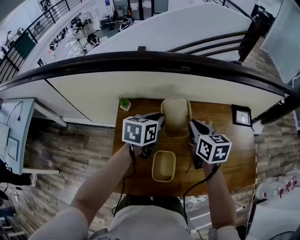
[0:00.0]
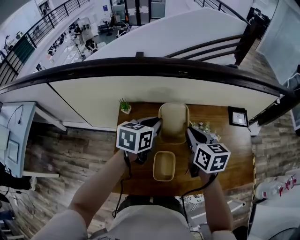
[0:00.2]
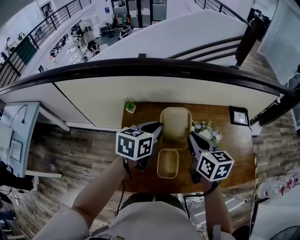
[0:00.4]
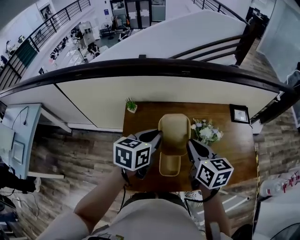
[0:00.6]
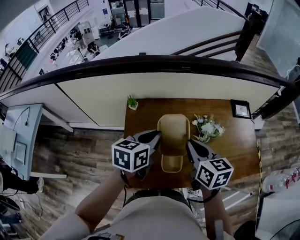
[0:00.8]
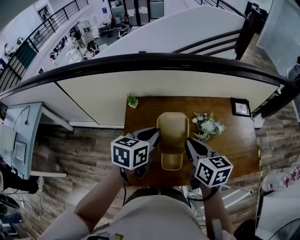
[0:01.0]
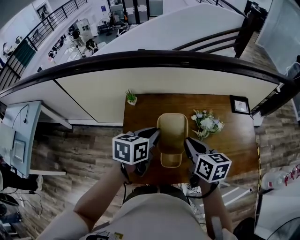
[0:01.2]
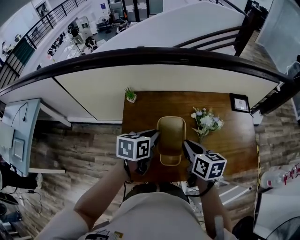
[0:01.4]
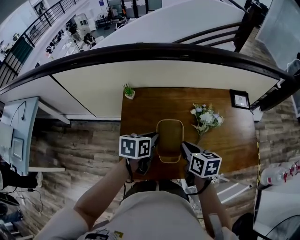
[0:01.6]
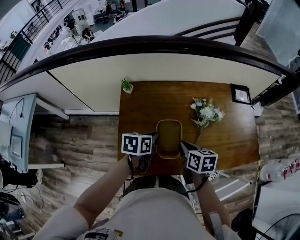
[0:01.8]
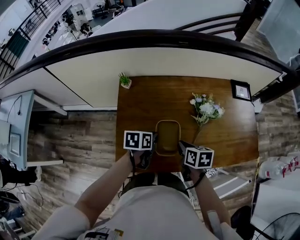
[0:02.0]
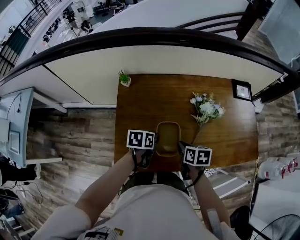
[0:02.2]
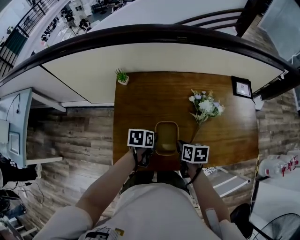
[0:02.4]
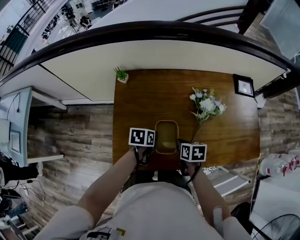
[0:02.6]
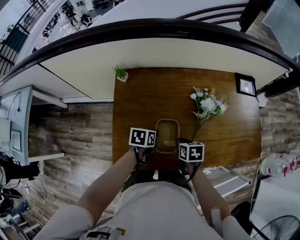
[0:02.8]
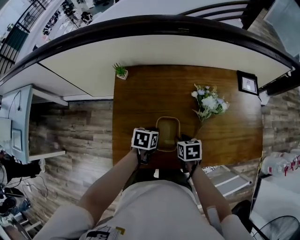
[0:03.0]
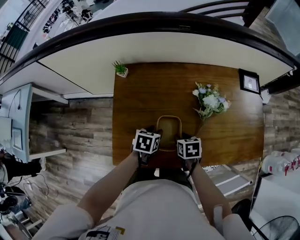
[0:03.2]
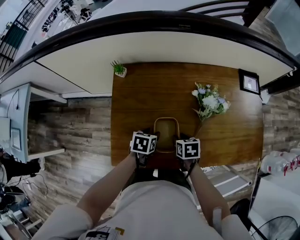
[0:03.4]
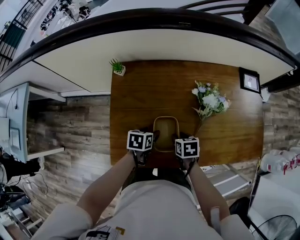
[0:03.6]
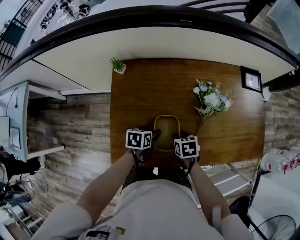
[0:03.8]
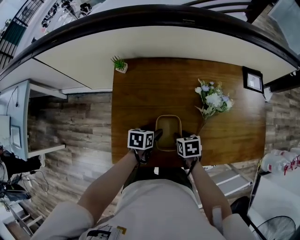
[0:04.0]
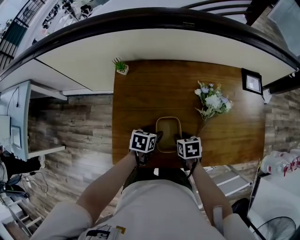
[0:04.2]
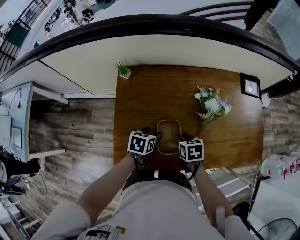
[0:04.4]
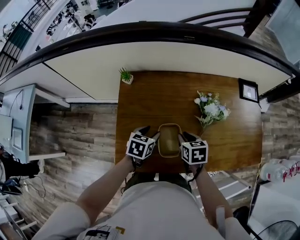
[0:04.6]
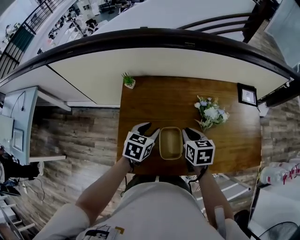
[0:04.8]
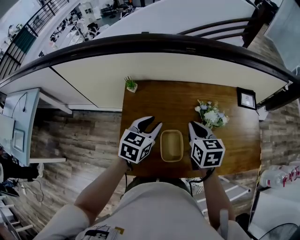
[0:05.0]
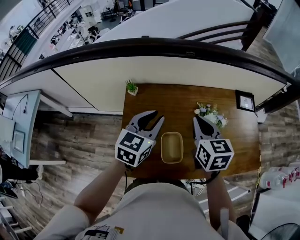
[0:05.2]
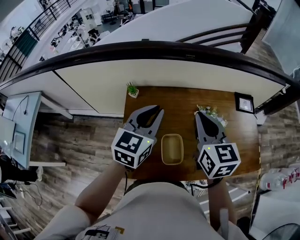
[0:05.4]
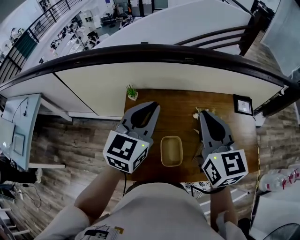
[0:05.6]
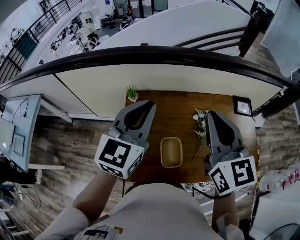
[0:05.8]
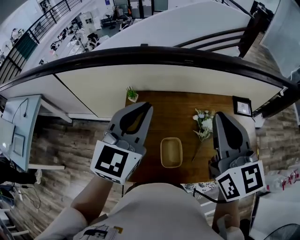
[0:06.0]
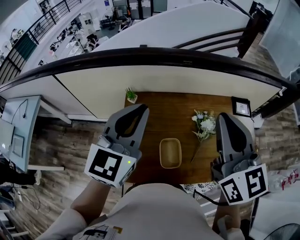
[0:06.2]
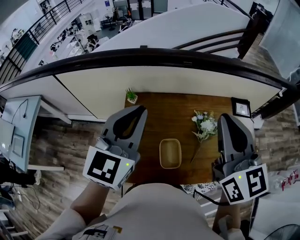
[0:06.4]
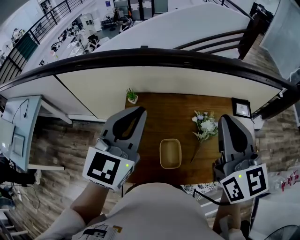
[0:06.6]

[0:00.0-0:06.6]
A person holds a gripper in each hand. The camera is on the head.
0:00.0 to 0:01.6: The grippers both shift backward by roughly 20 cm.
0:01.6 to 0:03.2: Both grippers travel together downward, roughly 20 cm. The left gripper swivels about 20 degrees, and opens up; the right gripper rotates roughly 20 degrees.
0:03.2 to 0:05.0: Both grippers travel together upward, roughly 20 cm. The left gripper swivels some 30 degrees, and opens, then closes once more; the right gripper swivels roughly 30 degrees.
0:05.0 to 0:06.6: Both grippers travel together upward, roughly 25 cm. The left gripper rotates roughly 30 degrees. The right gripper tips its fingers upward by about 30 degrees.

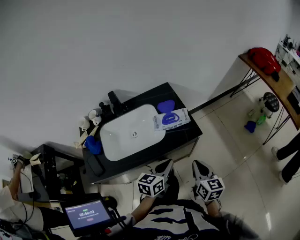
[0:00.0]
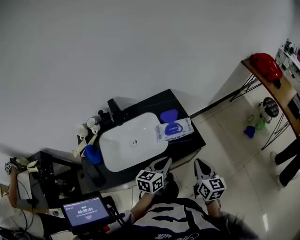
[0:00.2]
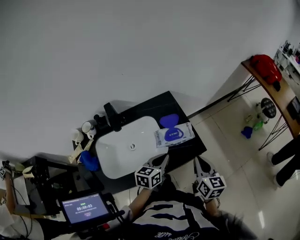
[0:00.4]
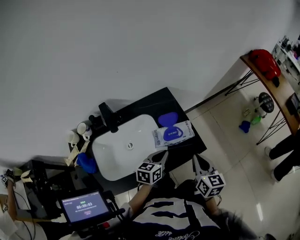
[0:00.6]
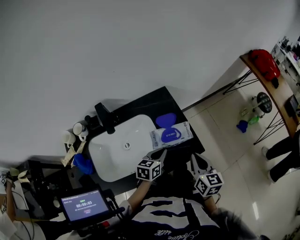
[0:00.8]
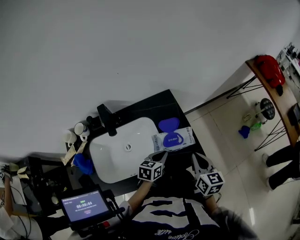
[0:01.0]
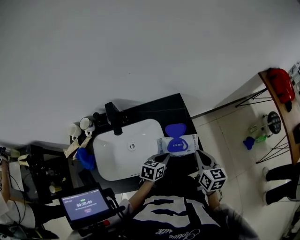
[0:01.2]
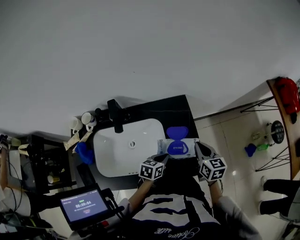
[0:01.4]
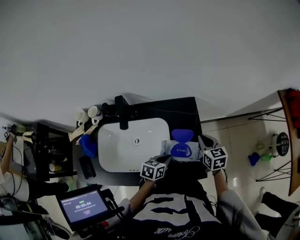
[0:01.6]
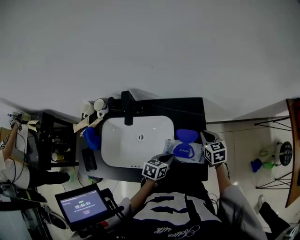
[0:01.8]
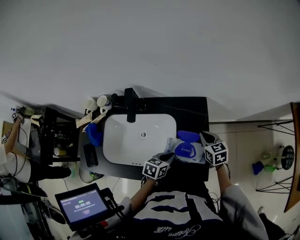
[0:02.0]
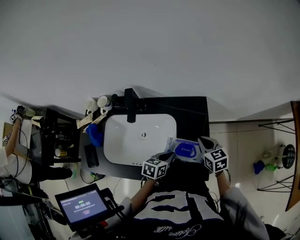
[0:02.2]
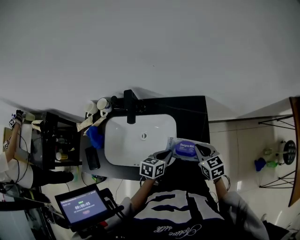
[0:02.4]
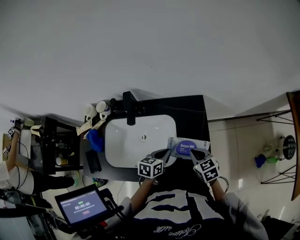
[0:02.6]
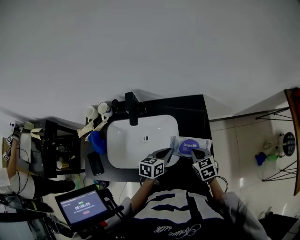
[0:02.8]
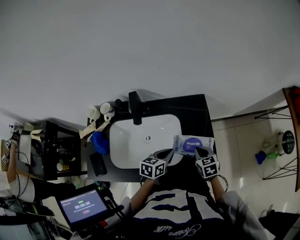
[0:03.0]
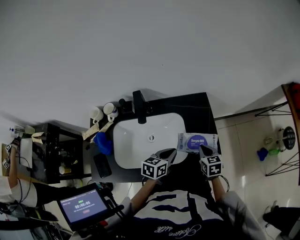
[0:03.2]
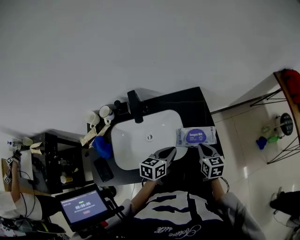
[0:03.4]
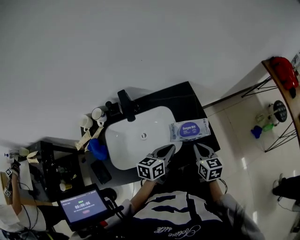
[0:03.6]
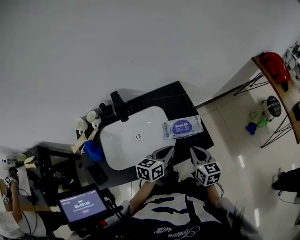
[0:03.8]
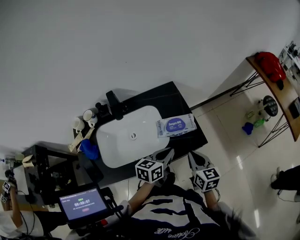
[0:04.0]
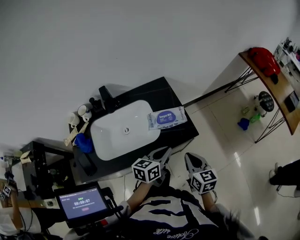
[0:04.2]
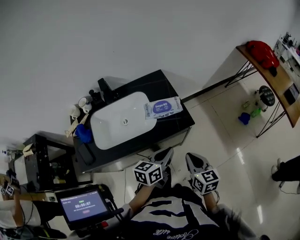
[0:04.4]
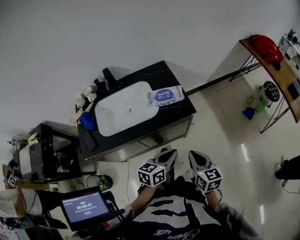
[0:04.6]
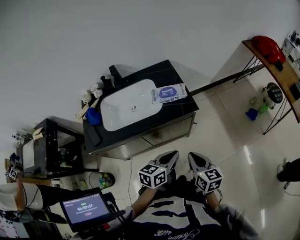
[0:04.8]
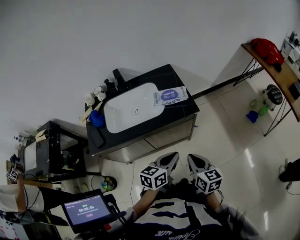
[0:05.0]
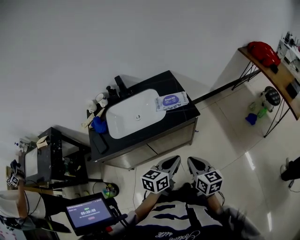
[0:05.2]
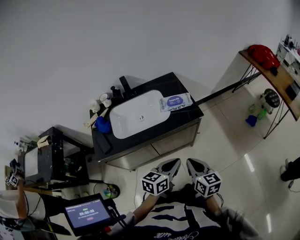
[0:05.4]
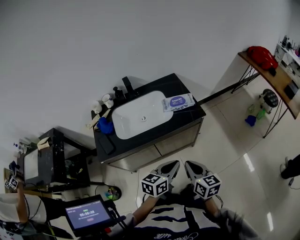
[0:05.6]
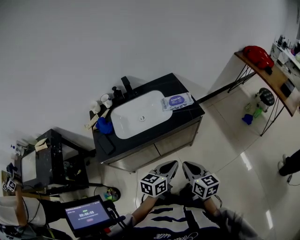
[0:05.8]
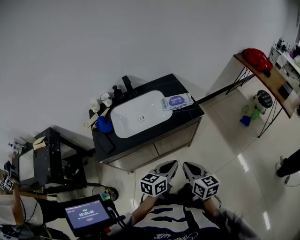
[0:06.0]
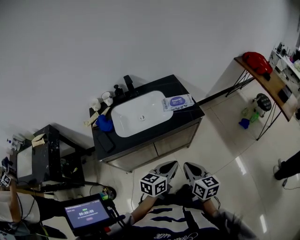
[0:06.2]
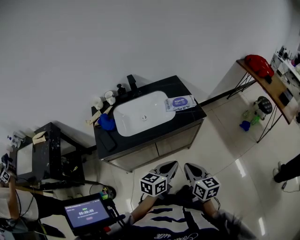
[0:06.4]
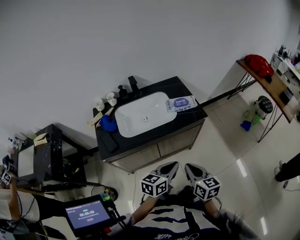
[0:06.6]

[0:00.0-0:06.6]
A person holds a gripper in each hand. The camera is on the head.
0:00.0 to 0:01.6: The right gripper heads forward, covering approximately 35 cm, and swivels about 30 degrees. The left gripper is displaced forward and downward by about 25 cm, and swivels approximately 20 degrees.
0:01.6 to 0:03.2: The left gripper goes roughly 10 cm to the left and upward. Meanwhile the right gripper shifts roughly 10 cm backward and to the left.
0:03.2 to 0:05.0: The left gripper shifts roughly 35 cm backward and to the right; the right gripper moves backward, some 35 cm, and rotates approximately 30 degrees.
0:05.0 to 0:06.6: The grippers both shift to the left and backward by approximately 15 cm.

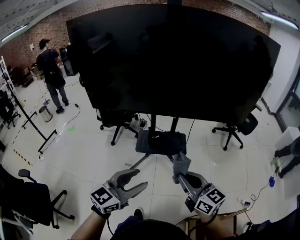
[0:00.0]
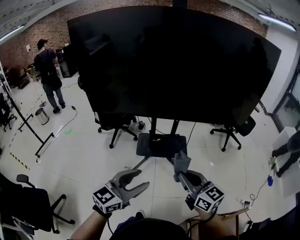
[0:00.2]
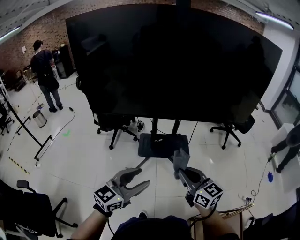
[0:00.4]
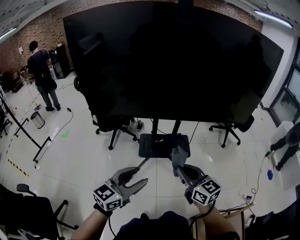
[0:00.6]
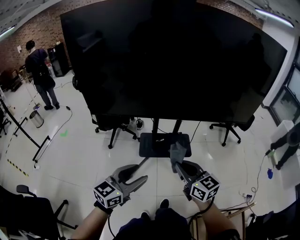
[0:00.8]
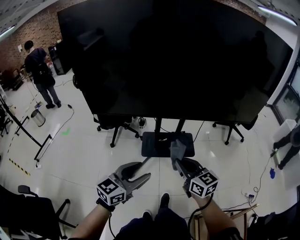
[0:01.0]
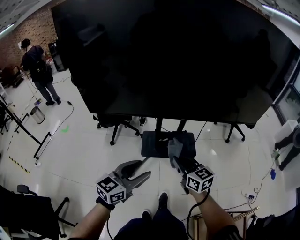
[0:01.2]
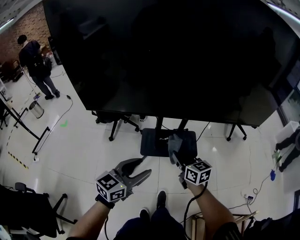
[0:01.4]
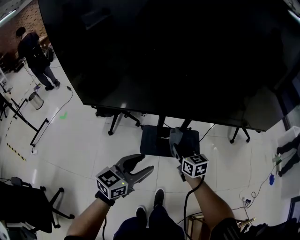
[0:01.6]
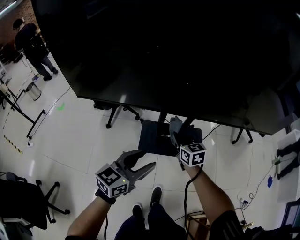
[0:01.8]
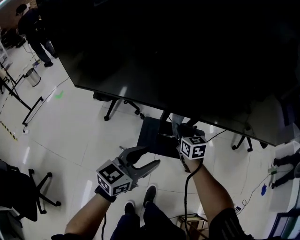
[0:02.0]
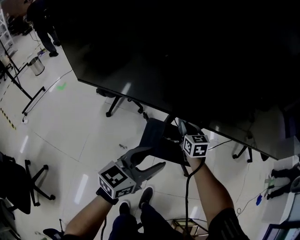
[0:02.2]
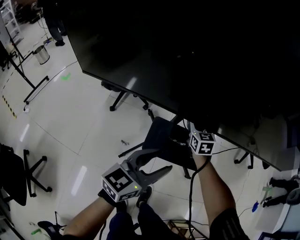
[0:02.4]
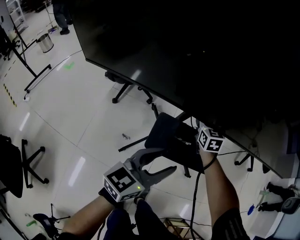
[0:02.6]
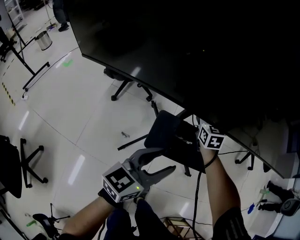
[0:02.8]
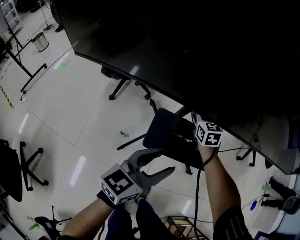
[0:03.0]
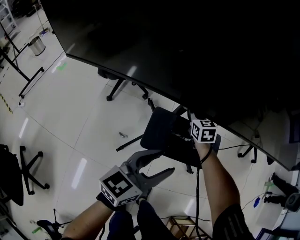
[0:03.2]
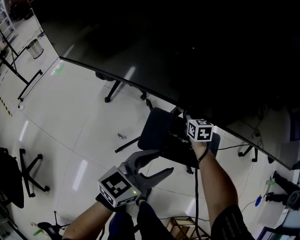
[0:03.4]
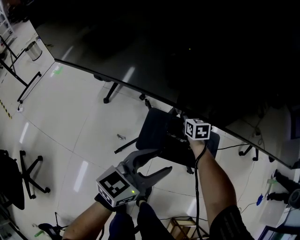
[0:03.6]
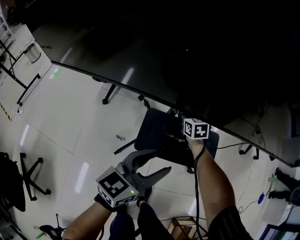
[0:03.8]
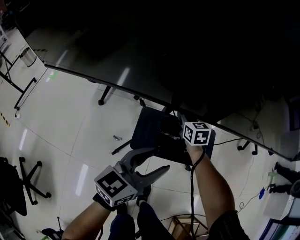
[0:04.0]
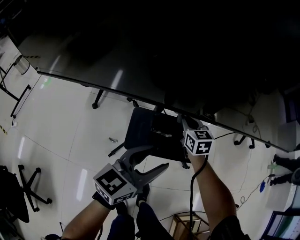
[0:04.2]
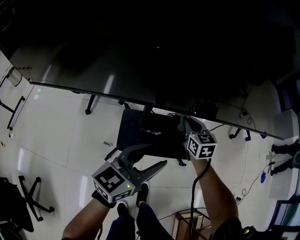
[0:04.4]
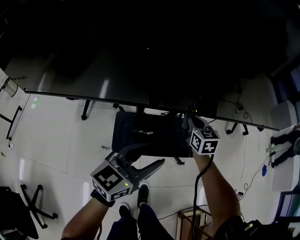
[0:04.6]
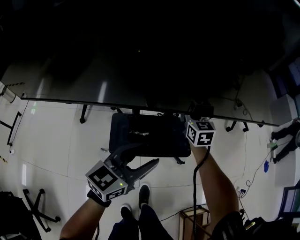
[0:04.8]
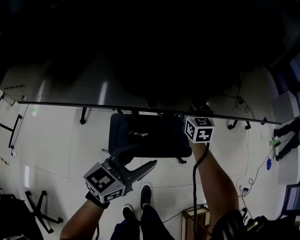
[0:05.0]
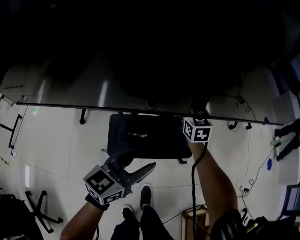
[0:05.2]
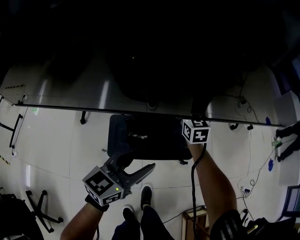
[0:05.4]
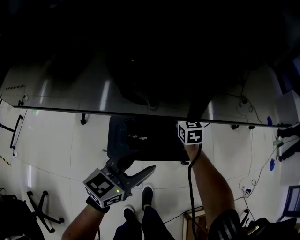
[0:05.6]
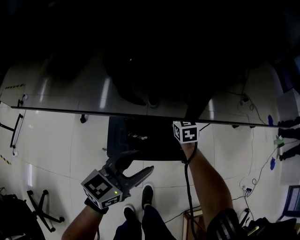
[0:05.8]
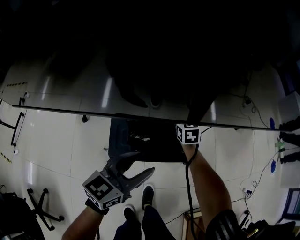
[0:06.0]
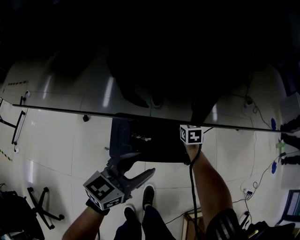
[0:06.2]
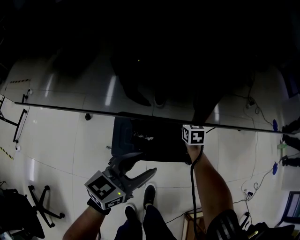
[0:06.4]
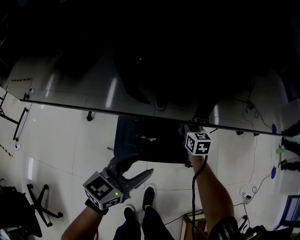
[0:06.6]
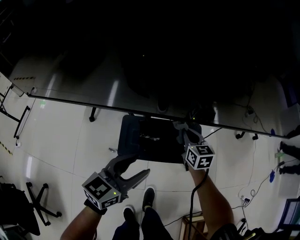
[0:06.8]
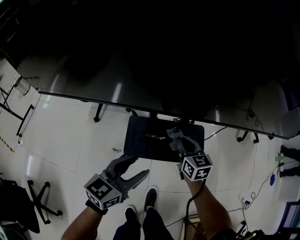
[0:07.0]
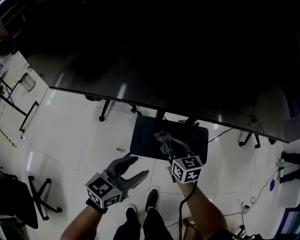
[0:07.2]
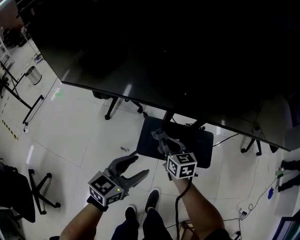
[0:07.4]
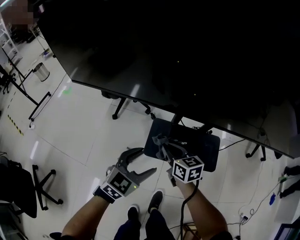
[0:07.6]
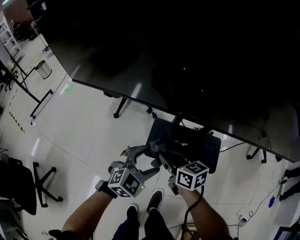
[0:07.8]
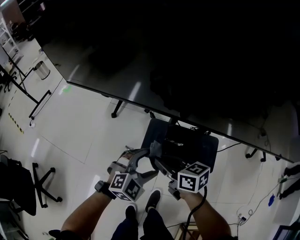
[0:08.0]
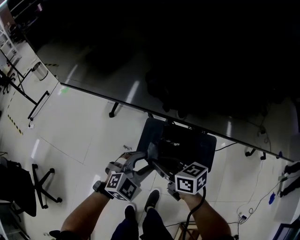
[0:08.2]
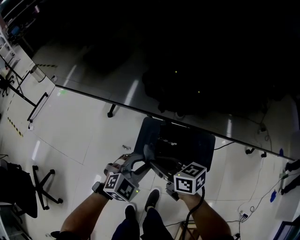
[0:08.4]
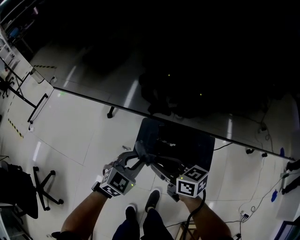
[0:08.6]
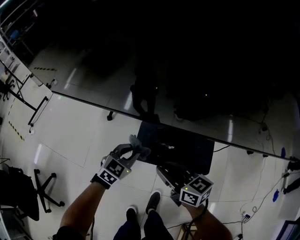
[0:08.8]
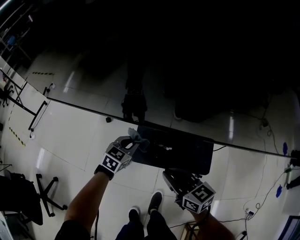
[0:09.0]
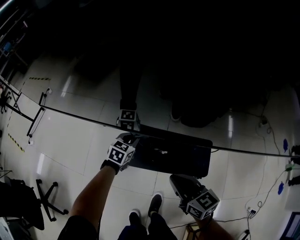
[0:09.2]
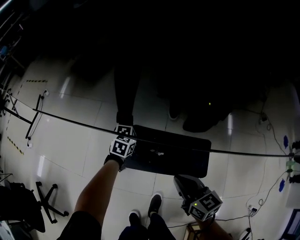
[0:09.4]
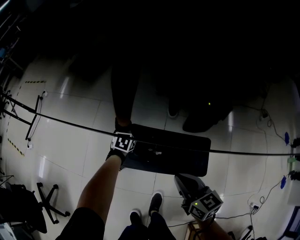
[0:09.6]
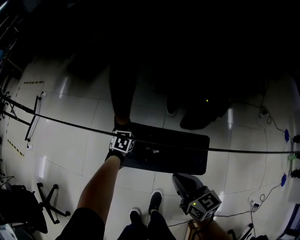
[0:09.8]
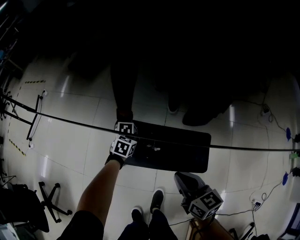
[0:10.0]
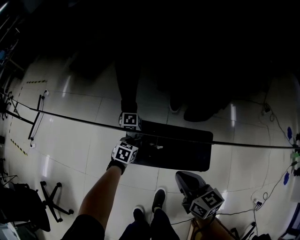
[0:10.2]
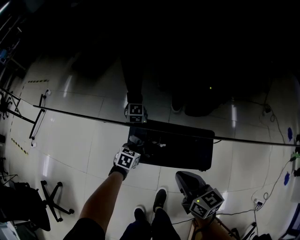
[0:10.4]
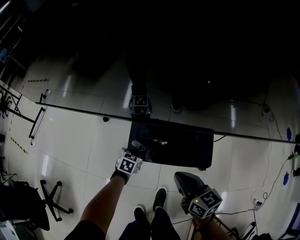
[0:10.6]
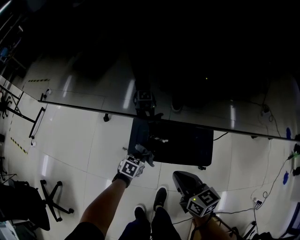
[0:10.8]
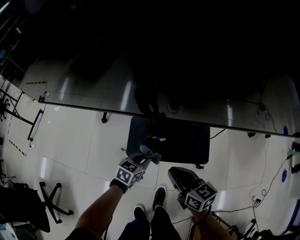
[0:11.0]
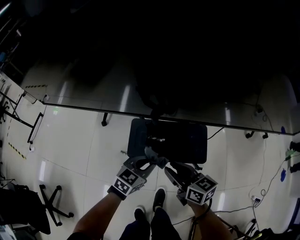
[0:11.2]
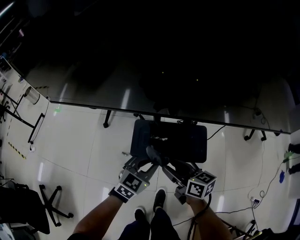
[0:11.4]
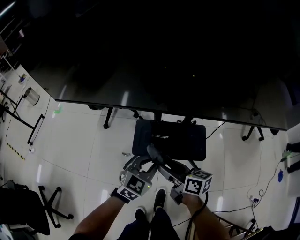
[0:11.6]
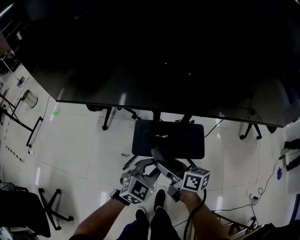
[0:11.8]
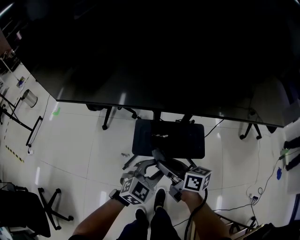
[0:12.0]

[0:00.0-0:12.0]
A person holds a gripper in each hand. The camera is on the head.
0:00.0 to 0:01.6: The two grippers go roughly 35 cm forward, downward and to the left. The right gripper changes its angle by some 20 degrees.
0:01.6 to 0:03.0: The right gripper travels forward and downward by some 30 cm, and changes its angle by some 20 degrees. The left gripper shifts about 20 cm downward and forward.
0:03.0 to 0:04.4: The left gripper travels to the right by roughly 10 cm. The right gripper shifts about 15 cm to the right.
0:04.4 to 0:06.0: The left gripper heads downward, covering about 5 cm, while the right gripper is displaced downward and forward by roughly 15 cm.
0:06.0 to 0:07.6: The right gripper moves approximately 35 cm, and changes its angle by approximately 40 degrees. The left gripper ends up some 15 cm from where it was, and rotates roughly 30 degrees.
0:07.6 to 0:09.0: The right gripper moves backward and to the right, about 10 cm; the left gripper goes roughly 15 cm forward and downward, and closes its fingers.
0:09.0 to 0:10.4: The left gripper shifts some 15 cm downward. The right gripper moves to the right, about 10 cm.
0:10.4 to 0:12.0: The left gripper travels upward and backward by approximately 30 cm, and swivels roughly 50 degrees, while the right gripper is displaced to the left and upward by roughly 10 cm, changes its angle by some 20 degrees, and opens up.
